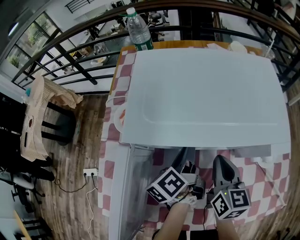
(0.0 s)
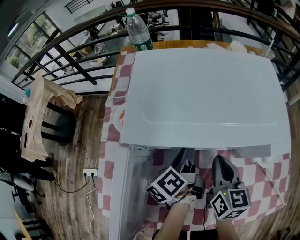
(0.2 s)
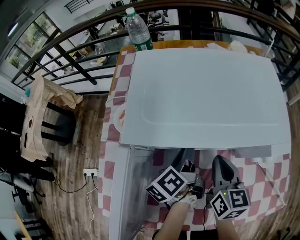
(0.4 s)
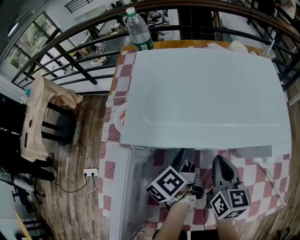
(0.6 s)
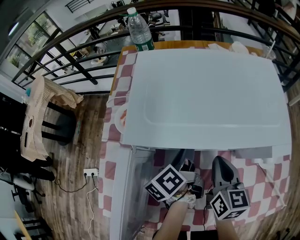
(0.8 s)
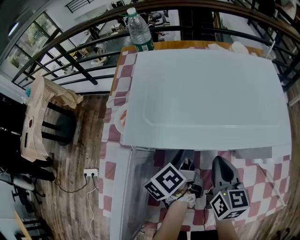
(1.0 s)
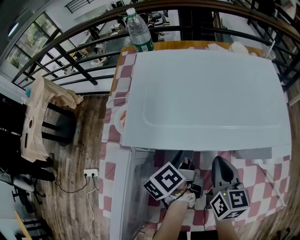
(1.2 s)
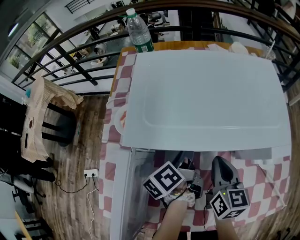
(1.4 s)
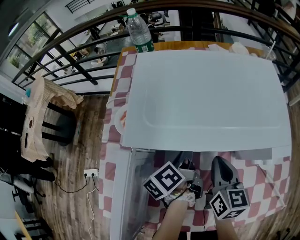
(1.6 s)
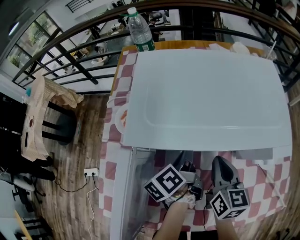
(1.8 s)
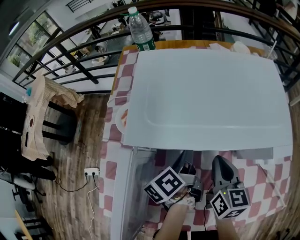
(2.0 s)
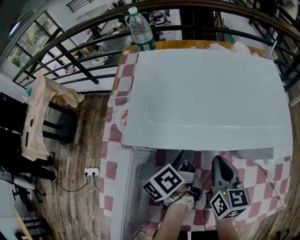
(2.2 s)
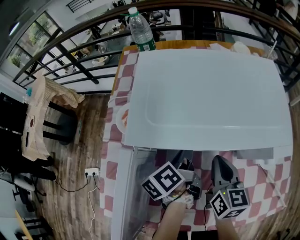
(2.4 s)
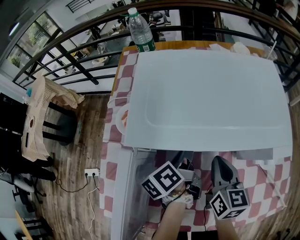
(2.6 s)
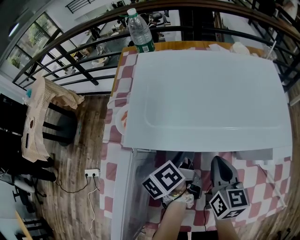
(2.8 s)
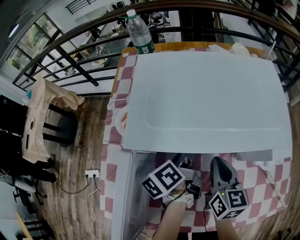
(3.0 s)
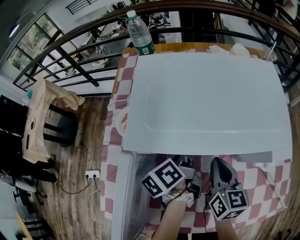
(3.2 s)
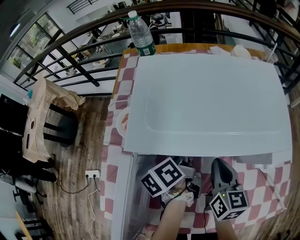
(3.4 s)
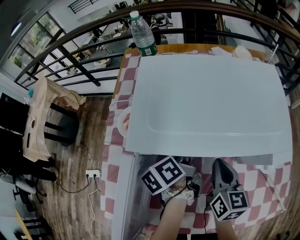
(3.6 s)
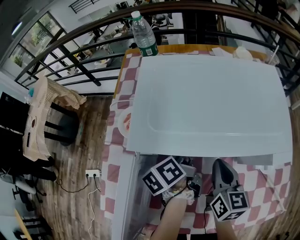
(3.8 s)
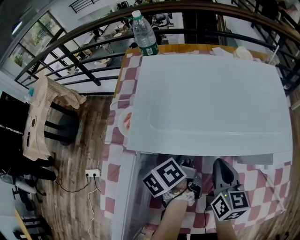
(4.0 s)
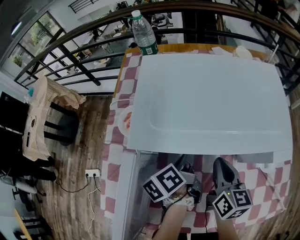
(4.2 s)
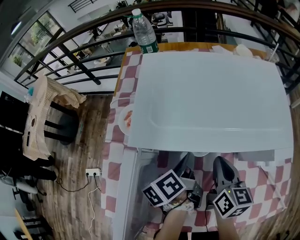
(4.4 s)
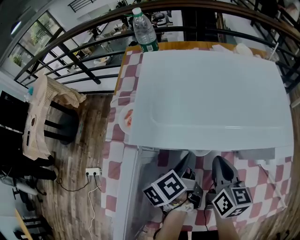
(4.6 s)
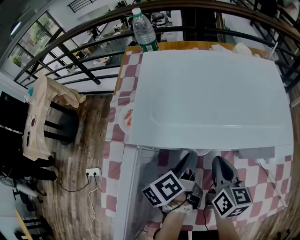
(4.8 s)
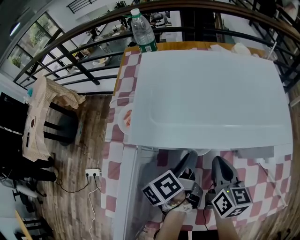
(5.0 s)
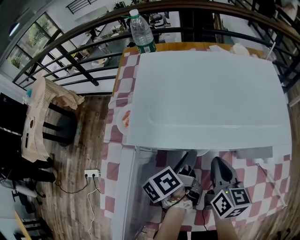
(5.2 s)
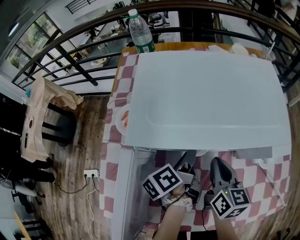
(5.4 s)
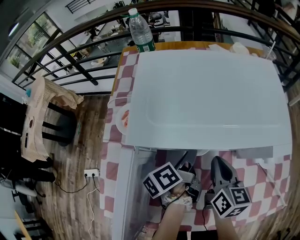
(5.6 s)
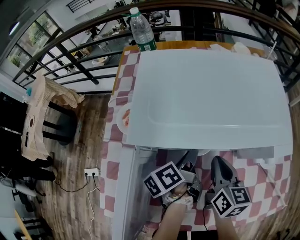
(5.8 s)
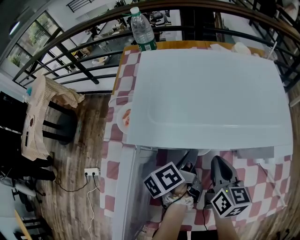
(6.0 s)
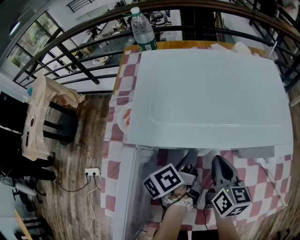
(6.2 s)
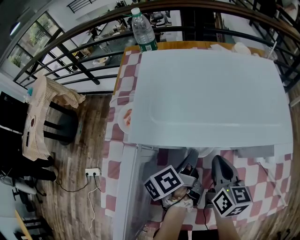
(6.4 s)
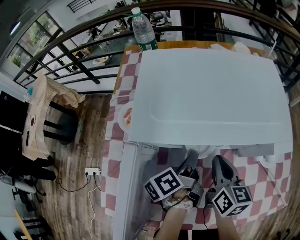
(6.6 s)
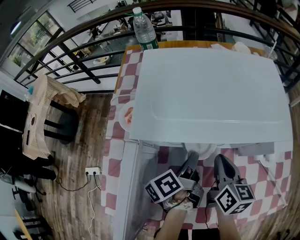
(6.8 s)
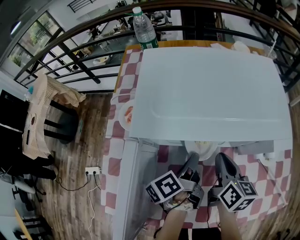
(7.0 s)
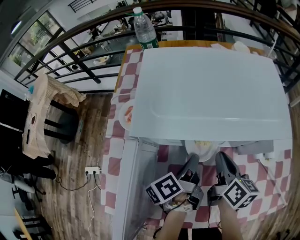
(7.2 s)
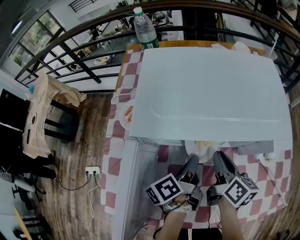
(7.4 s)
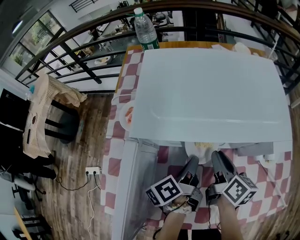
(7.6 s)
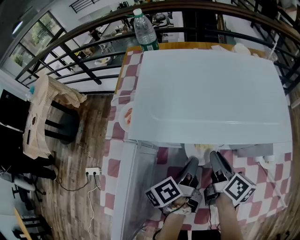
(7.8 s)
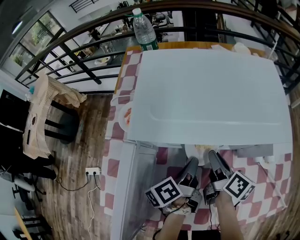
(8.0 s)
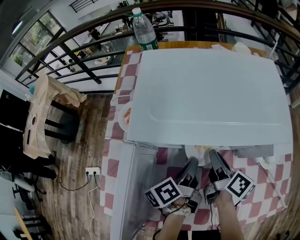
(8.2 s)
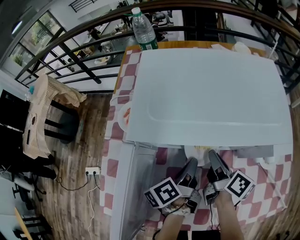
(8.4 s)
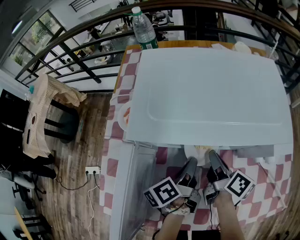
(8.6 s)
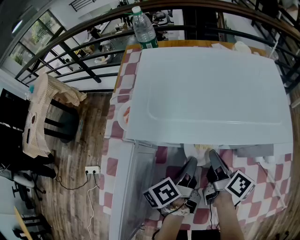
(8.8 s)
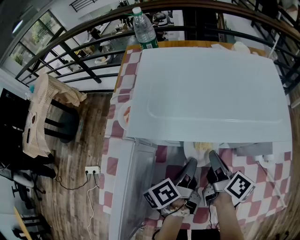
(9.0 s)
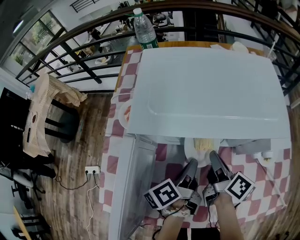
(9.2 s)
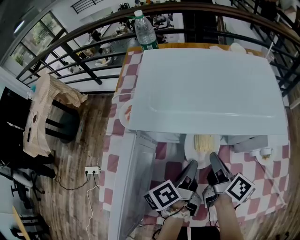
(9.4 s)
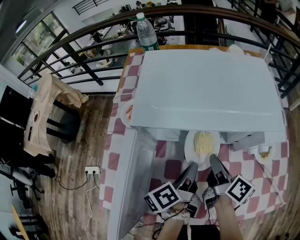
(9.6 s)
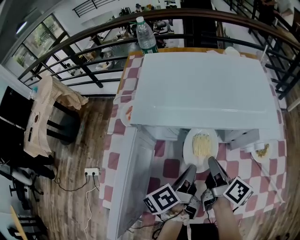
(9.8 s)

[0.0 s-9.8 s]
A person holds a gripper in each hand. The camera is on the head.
0.0 to 1.4 s: The grippers move only a little.
1.4 to 2.8 s: The left gripper closes, then opens again.
2.8 to 4.2 s: The left gripper closes.
4.2 to 5.6 s: The left gripper opens its fingers.
5.6 to 7.0 s: The left gripper closes its fingers.
7.0 to 8.4 s: The right gripper swivels about 30 degrees.
8.4 to 9.8 s: Both grippers travel together backward, approximately 5 cm.

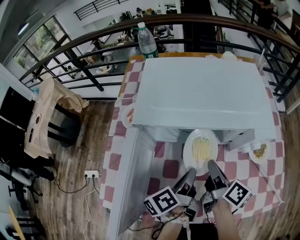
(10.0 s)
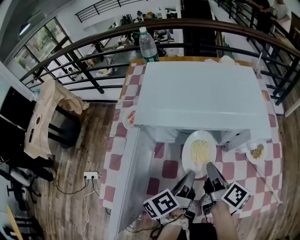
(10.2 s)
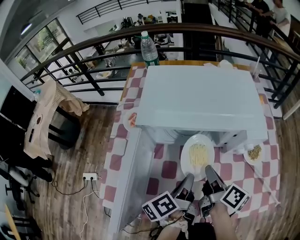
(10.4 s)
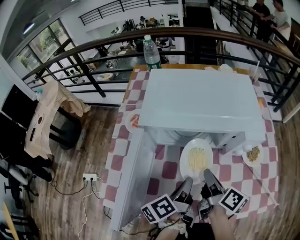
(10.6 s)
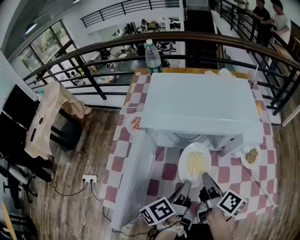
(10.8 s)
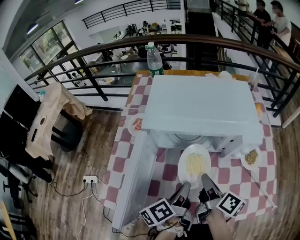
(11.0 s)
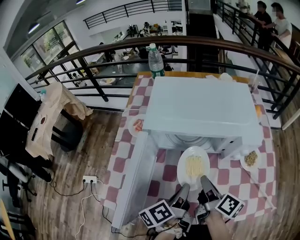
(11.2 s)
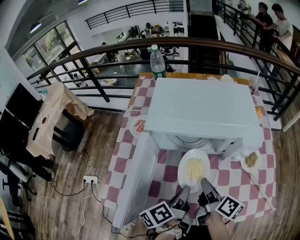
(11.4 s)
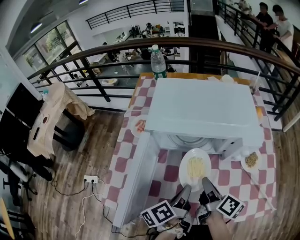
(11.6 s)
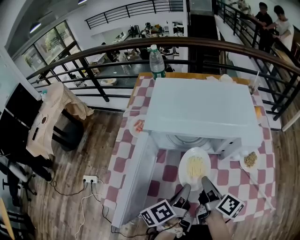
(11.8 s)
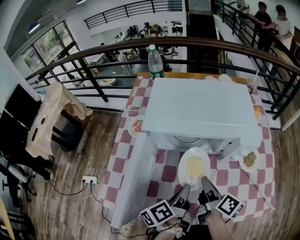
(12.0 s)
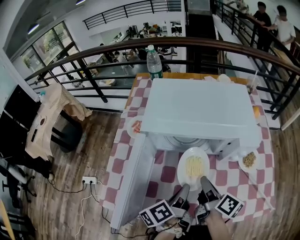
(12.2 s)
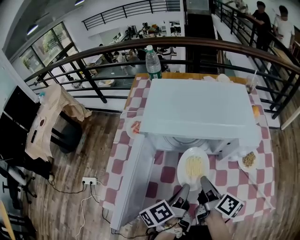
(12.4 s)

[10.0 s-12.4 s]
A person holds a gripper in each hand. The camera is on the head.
10.0 to 11.2 s: Both grippers travel together backward, approximately 5 cm.
11.2 to 12.4 s: The grippers move only a little.

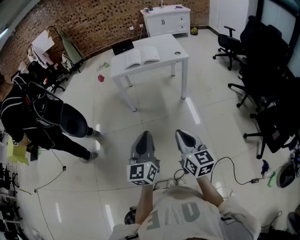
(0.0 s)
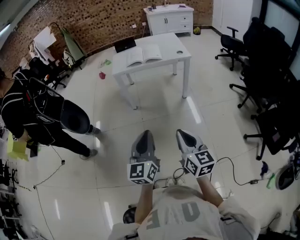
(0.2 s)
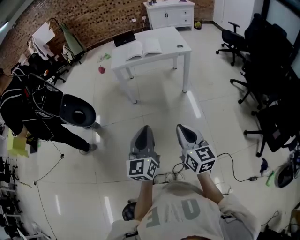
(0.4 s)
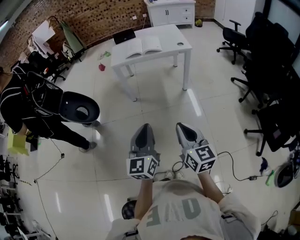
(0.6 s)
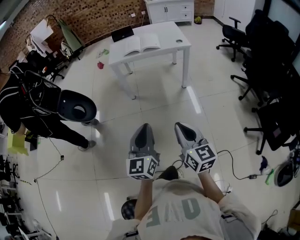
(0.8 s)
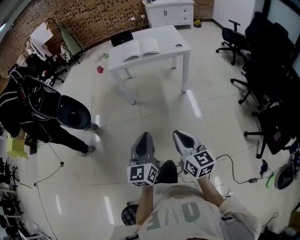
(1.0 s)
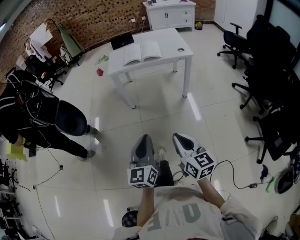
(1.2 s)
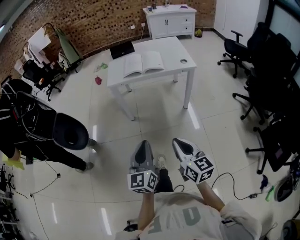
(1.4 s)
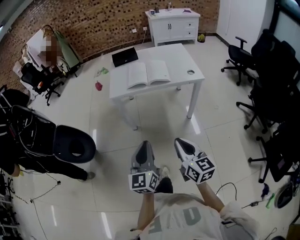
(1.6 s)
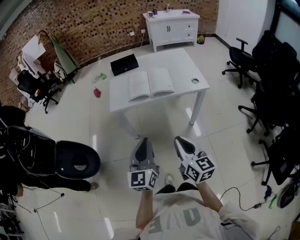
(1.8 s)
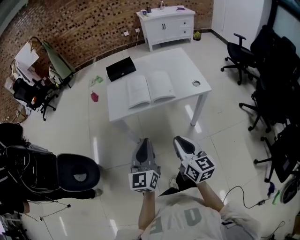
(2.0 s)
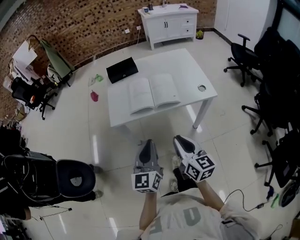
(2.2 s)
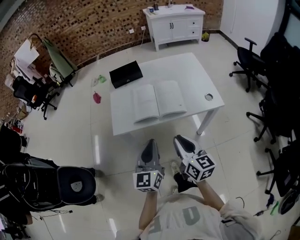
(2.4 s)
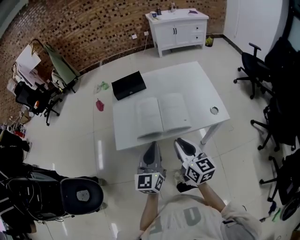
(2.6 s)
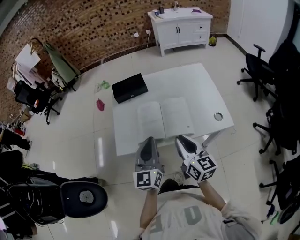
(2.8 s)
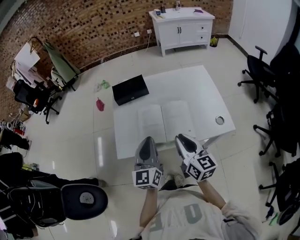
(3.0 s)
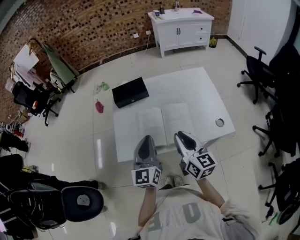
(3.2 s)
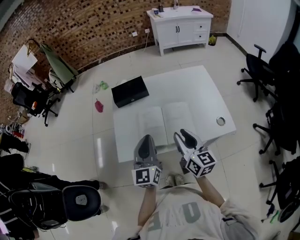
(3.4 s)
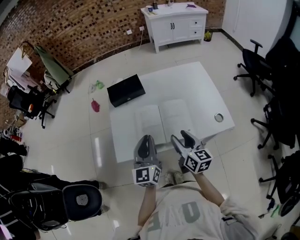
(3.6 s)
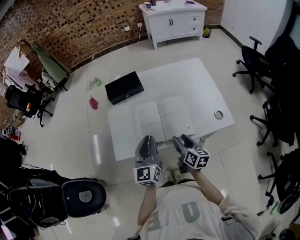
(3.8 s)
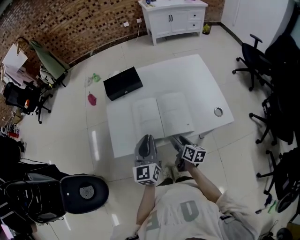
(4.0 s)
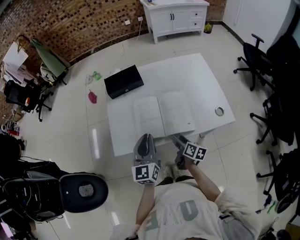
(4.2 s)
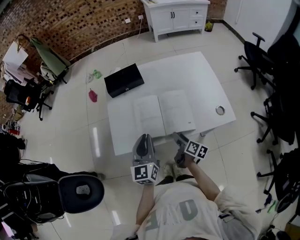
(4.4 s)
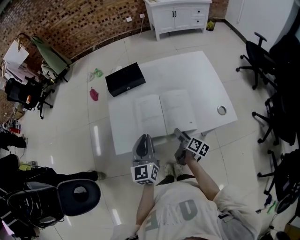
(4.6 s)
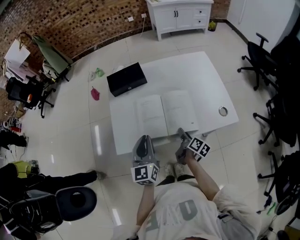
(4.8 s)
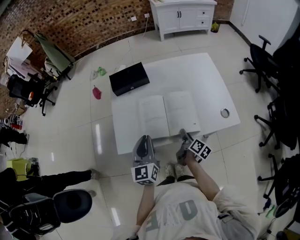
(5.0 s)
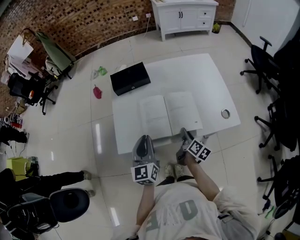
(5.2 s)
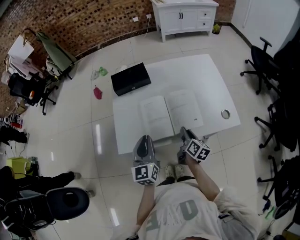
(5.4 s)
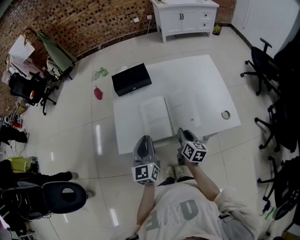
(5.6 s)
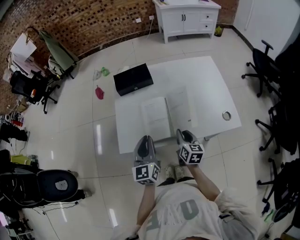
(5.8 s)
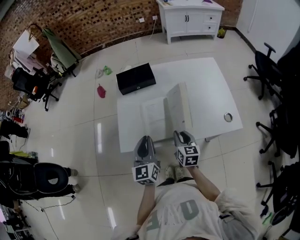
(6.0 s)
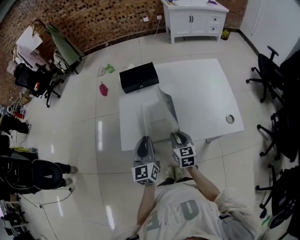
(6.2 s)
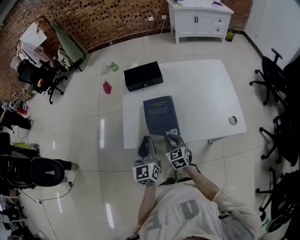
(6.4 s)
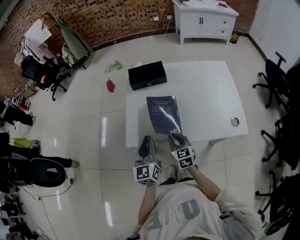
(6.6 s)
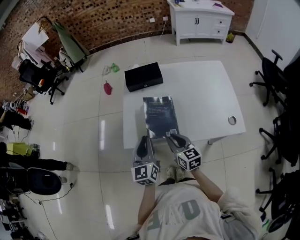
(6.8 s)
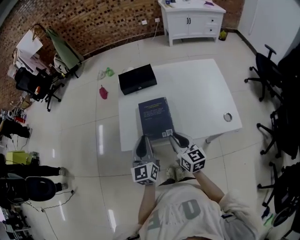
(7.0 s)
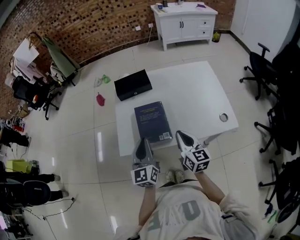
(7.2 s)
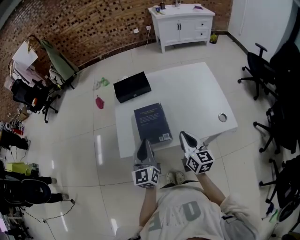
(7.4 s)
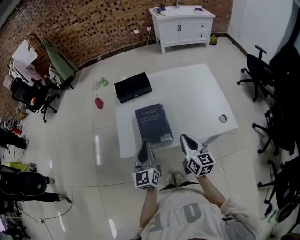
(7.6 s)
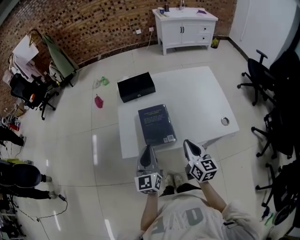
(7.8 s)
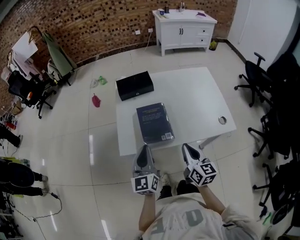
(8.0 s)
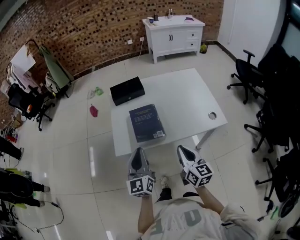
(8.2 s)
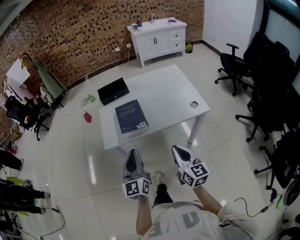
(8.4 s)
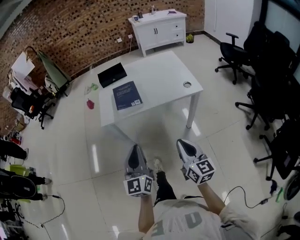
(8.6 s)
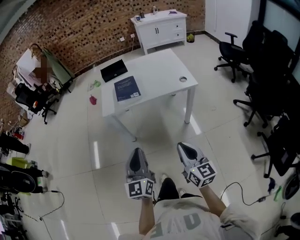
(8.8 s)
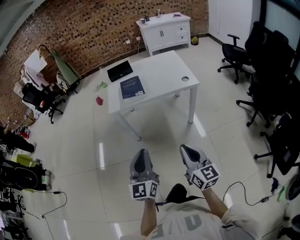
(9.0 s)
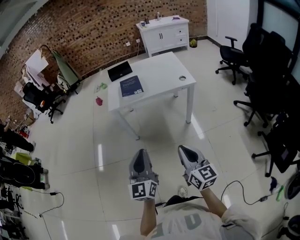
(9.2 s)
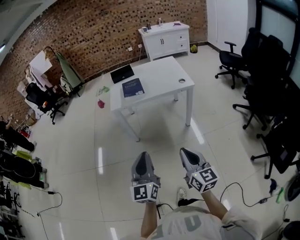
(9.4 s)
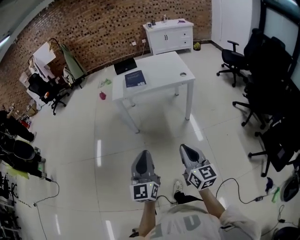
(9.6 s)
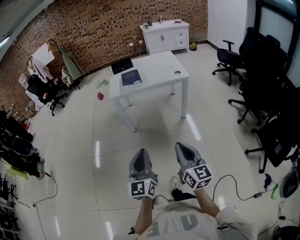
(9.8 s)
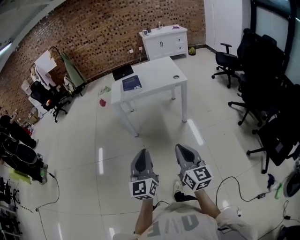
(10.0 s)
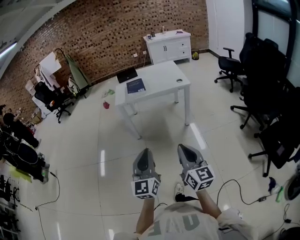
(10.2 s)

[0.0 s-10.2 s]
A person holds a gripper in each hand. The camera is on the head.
0.0 to 1.4 s: Both grippers move forward, about 15 cm.
1.4 to 3.0 s: The pair of grippers is taken forward, about 60 cm.
3.0 to 4.4 s: The left gripper shifts approximately 5 cm downward; the right gripper moves downward, approximately 25 cm, rotates around the line of its fingers by about 40 degrees, clockwise from behind, and opens its fingers.
4.4 to 5.8 s: The right gripper shifts approximately 5 cm upward, changes its angle by roughly 40 degrees, and closes up.
5.8 to 7.2 s: The right gripper goes about 10 cm upward.
7.2 to 8.8 s: The two grippers travel together, backward, roughly 50 cm.
8.8 to 10.2 s: Both grippers travel together backward, about 30 cm.

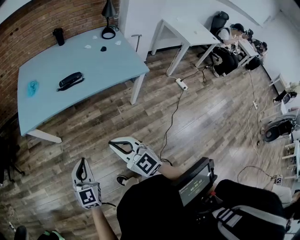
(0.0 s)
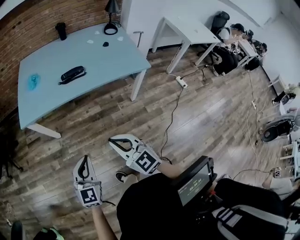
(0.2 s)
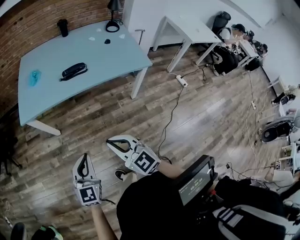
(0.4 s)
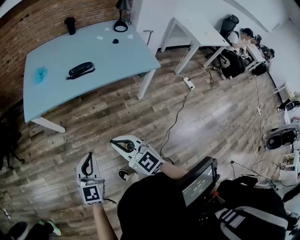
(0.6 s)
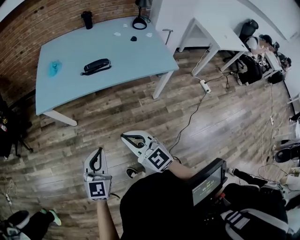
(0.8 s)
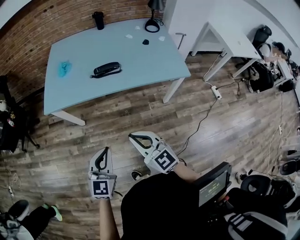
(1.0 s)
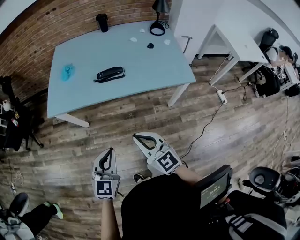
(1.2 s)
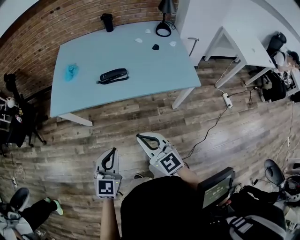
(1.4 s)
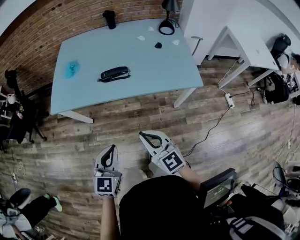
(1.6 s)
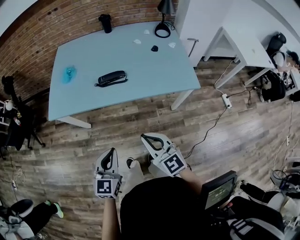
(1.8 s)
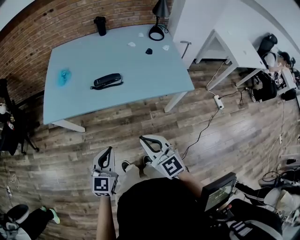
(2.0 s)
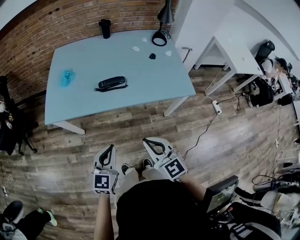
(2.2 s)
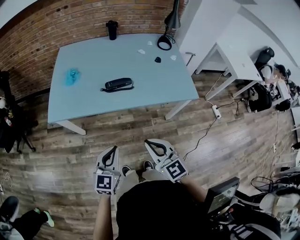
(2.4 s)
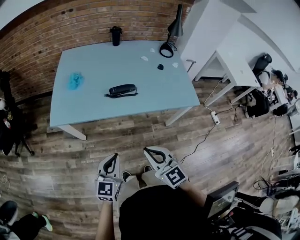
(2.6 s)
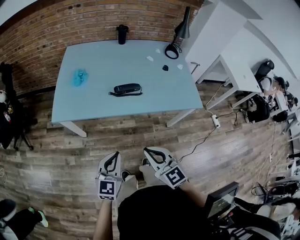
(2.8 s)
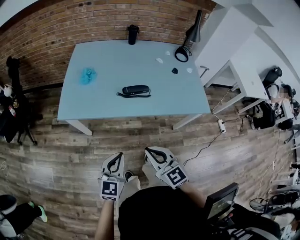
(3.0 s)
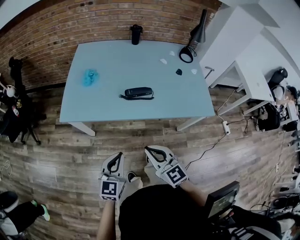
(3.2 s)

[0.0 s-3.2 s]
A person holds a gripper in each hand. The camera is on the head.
0.0 to 1.6 s: The left gripper moves forward and to the right, approximately 15 cm. The right gripper moves forward, approximately 15 cm.
1.6 to 3.2 s: Both grippers move to the left and forward, roughly 15 cm.
